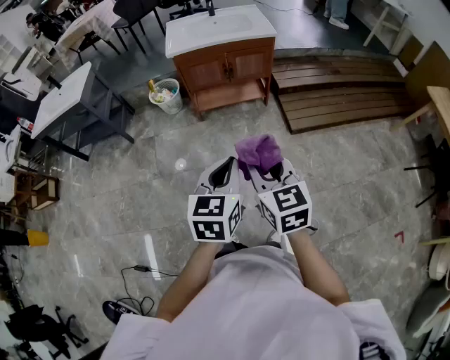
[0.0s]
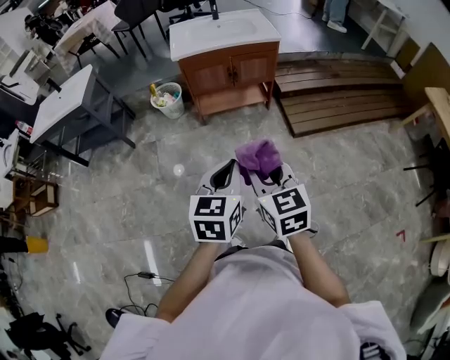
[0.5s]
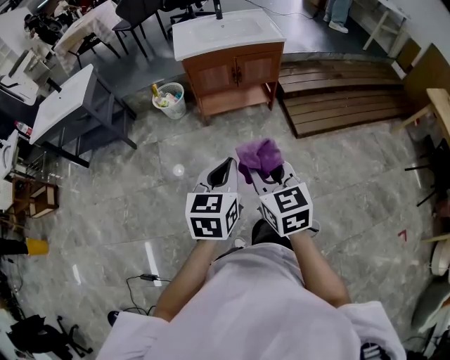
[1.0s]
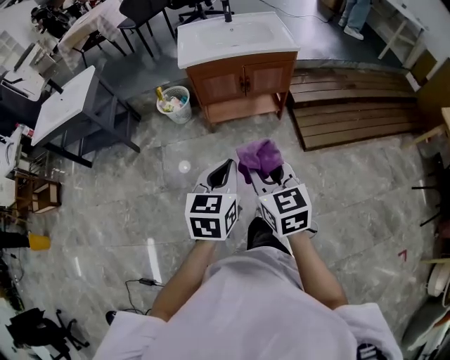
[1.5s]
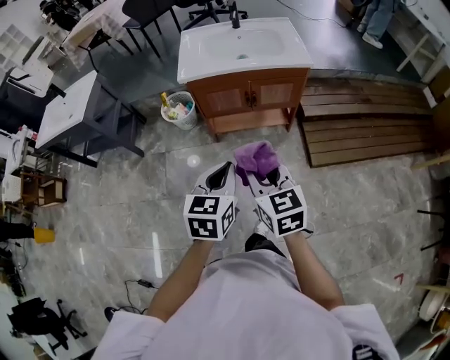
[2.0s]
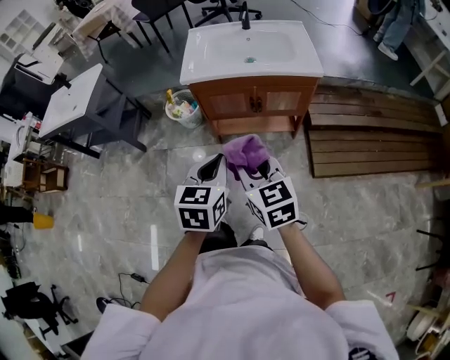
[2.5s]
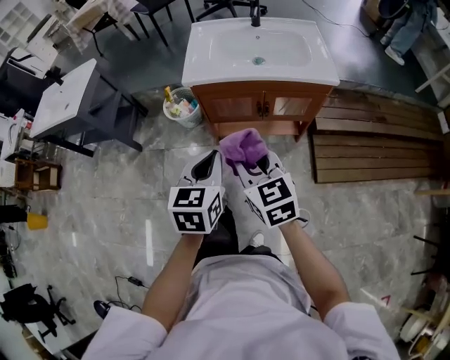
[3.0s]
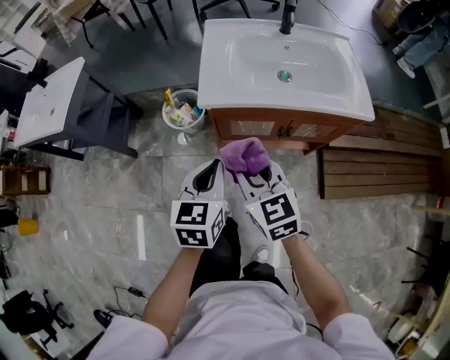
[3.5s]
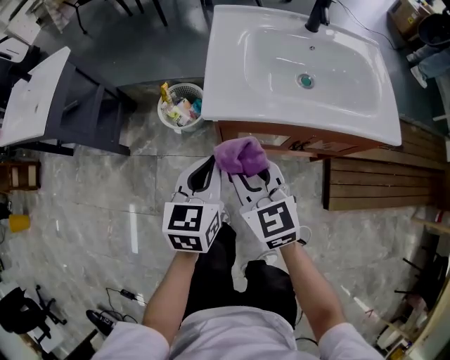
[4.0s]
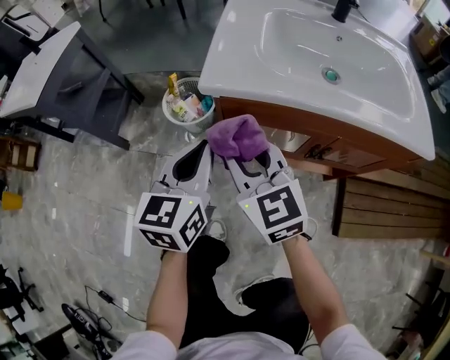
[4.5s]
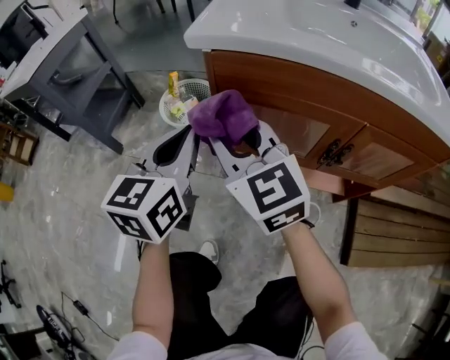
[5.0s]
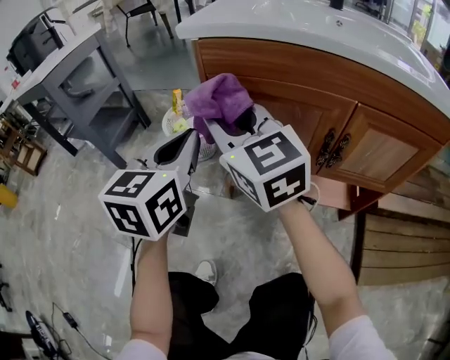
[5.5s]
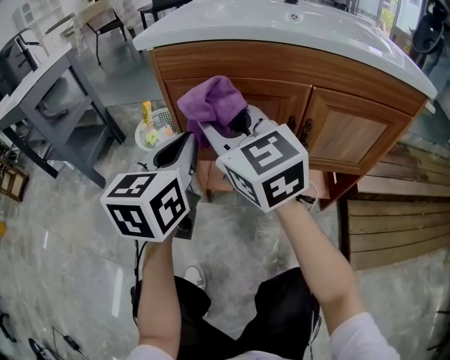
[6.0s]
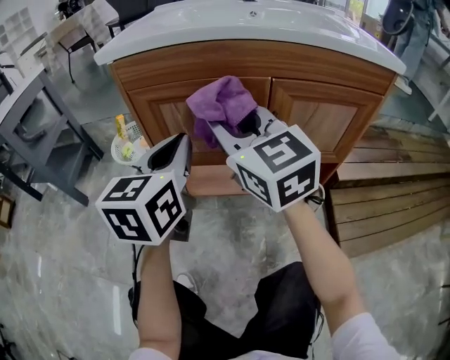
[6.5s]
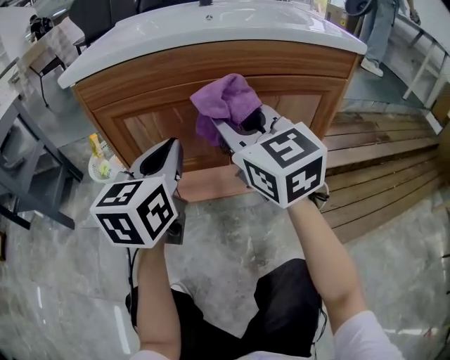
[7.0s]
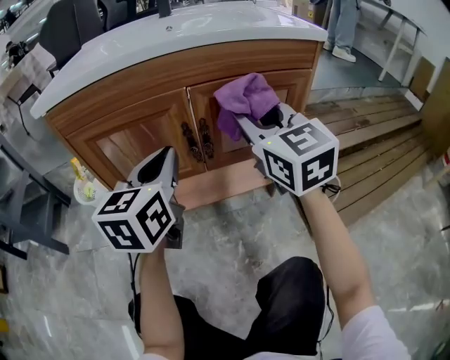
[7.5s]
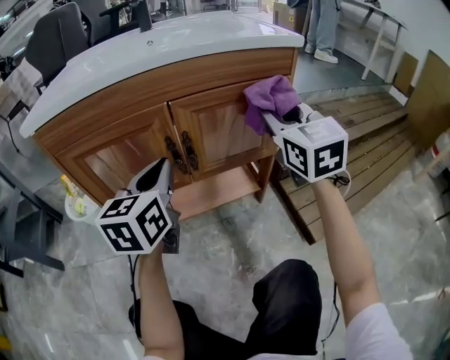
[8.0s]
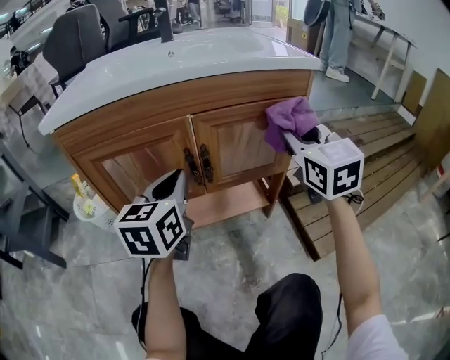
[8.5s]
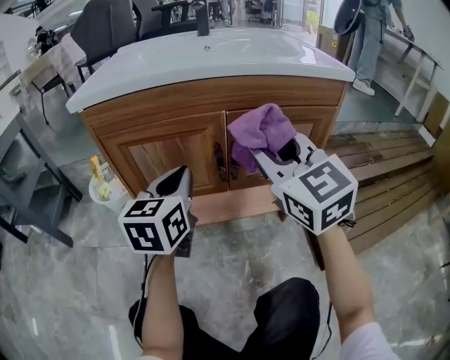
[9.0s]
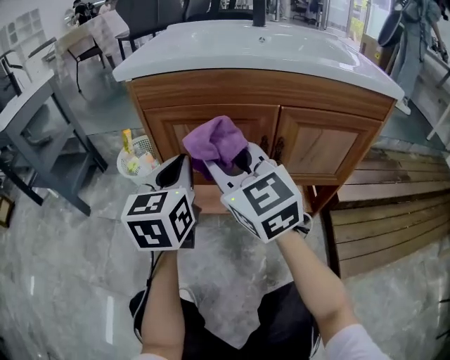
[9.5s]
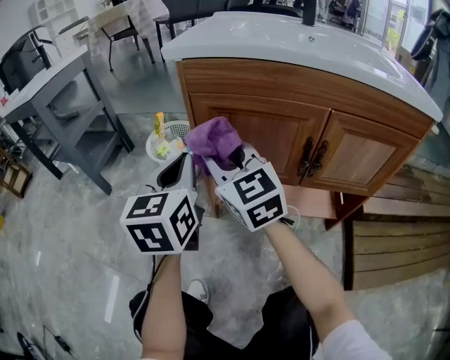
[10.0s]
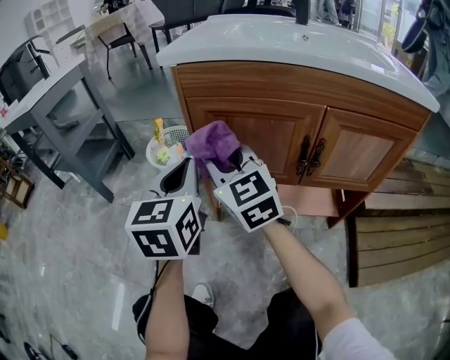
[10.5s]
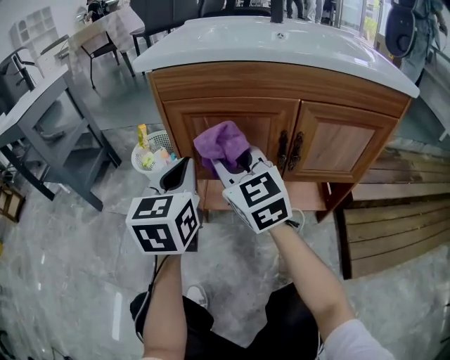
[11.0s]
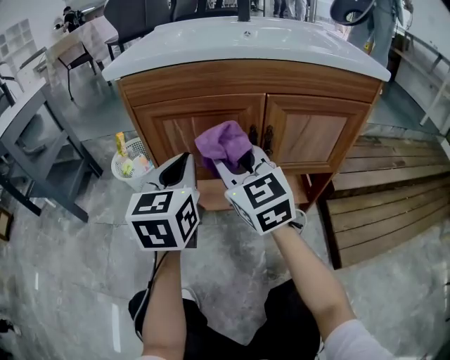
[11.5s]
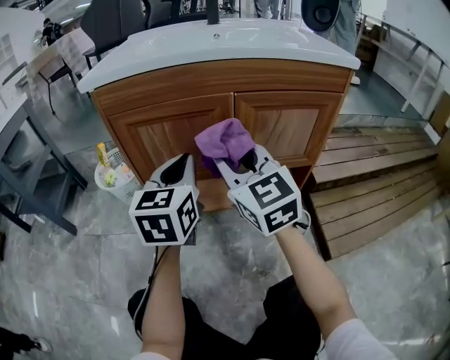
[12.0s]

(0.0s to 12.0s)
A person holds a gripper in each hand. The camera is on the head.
0.0s - 2.0s: Both grippers travel together forward, approximately 25 cm.
2.0s - 4.0s: Both grippers are carried forward, about 40 cm.
4.0s - 6.0s: Both grippers move downward, approximately 15 cm. The right gripper turns by some 20 degrees.
6.0s - 8.0s: The left gripper moves about 20 cm, and turns by approximately 20 degrees. The right gripper ends up about 40 cm from where it was, and swivels approximately 40 degrees.
8.0s - 10.0s: The right gripper ends up roughly 40 cm from where it was, and changes its angle by roughly 40 degrees; the left gripper shifts by about 25 cm, and swivels roughly 30 degrees.
10.0s - 12.0s: Both grippers move to the right, some 15 cm.

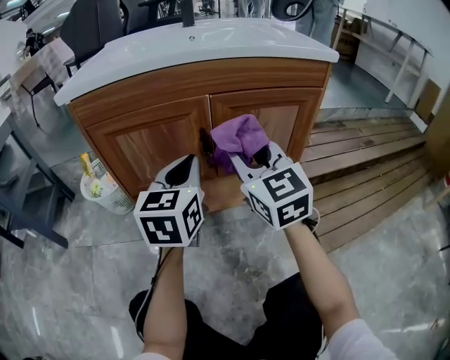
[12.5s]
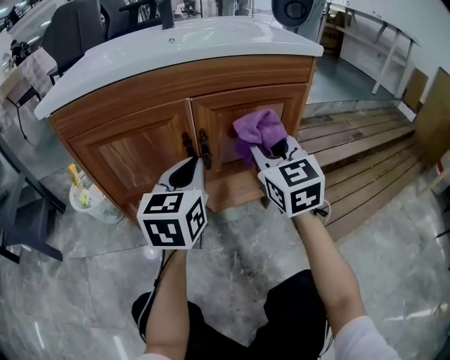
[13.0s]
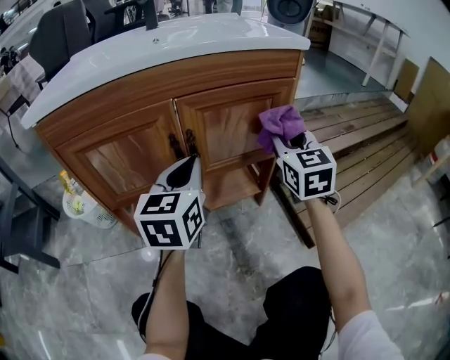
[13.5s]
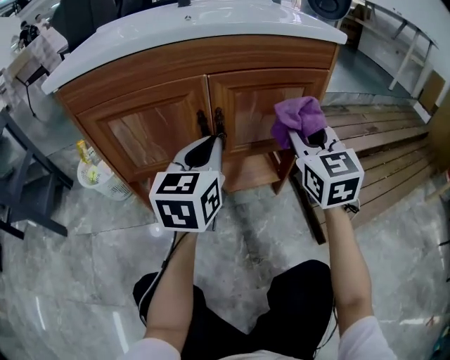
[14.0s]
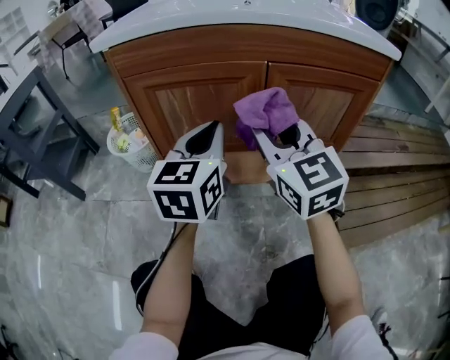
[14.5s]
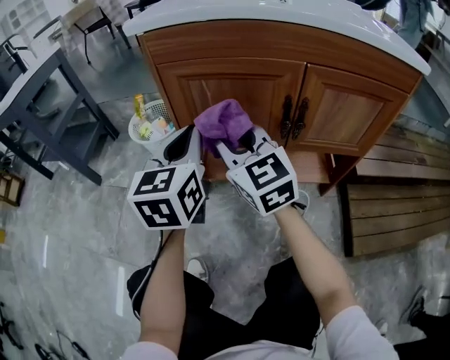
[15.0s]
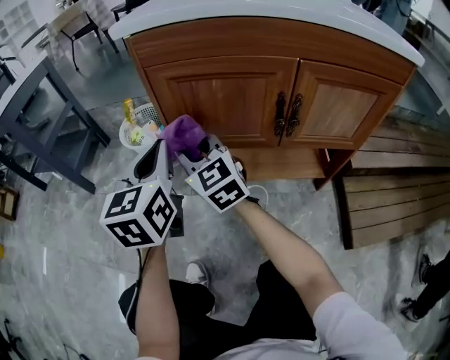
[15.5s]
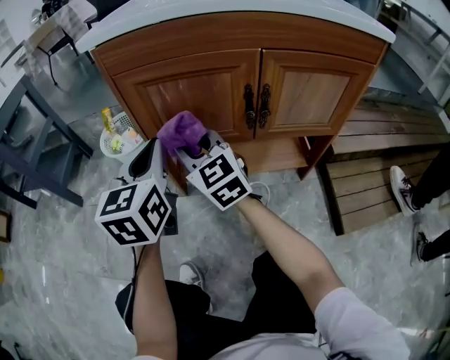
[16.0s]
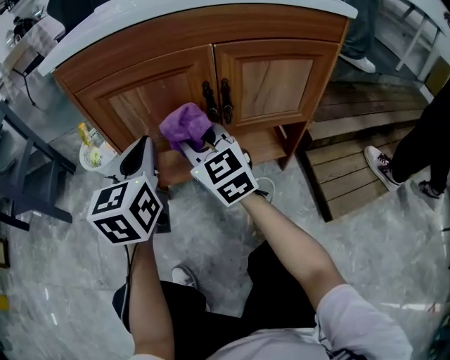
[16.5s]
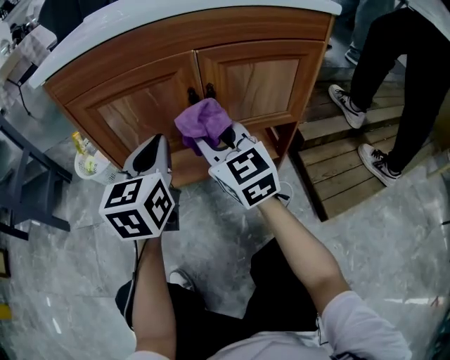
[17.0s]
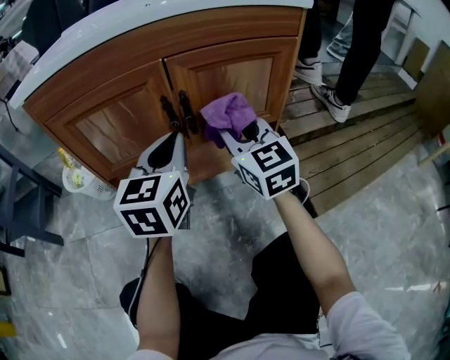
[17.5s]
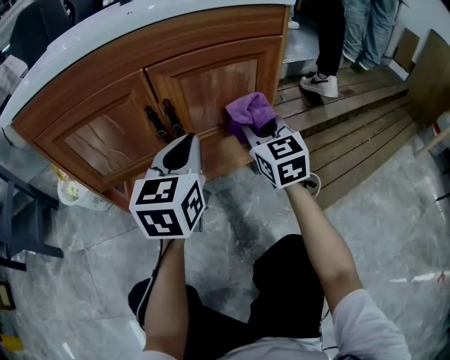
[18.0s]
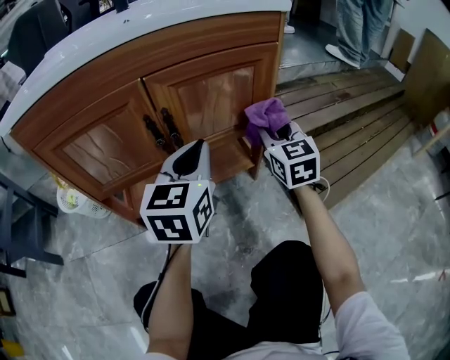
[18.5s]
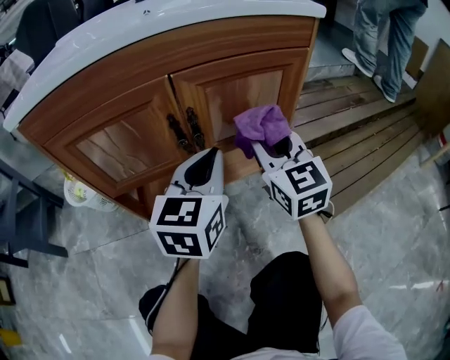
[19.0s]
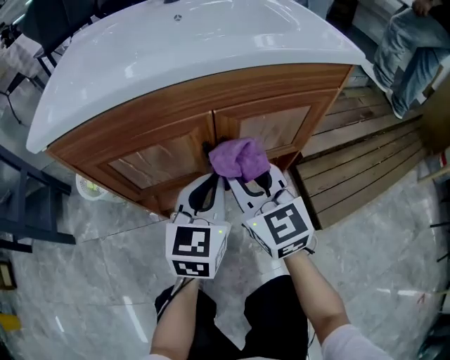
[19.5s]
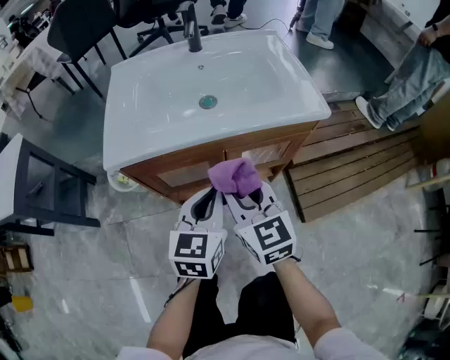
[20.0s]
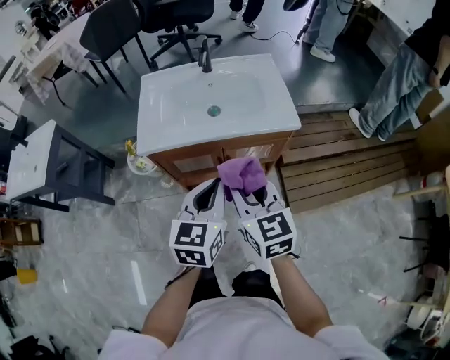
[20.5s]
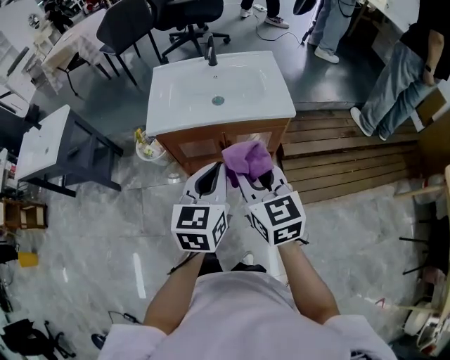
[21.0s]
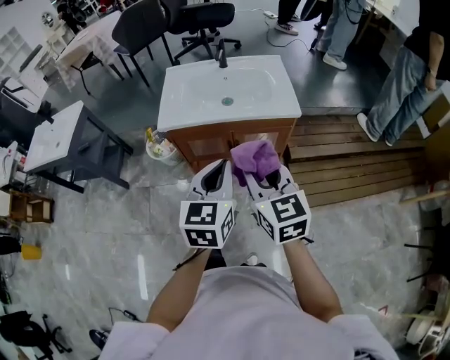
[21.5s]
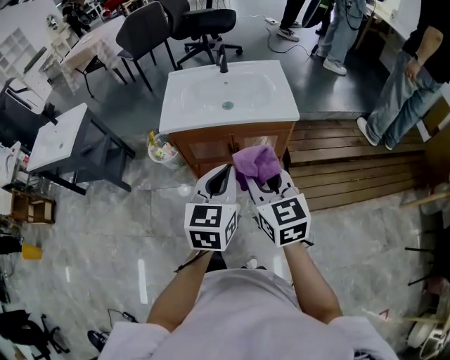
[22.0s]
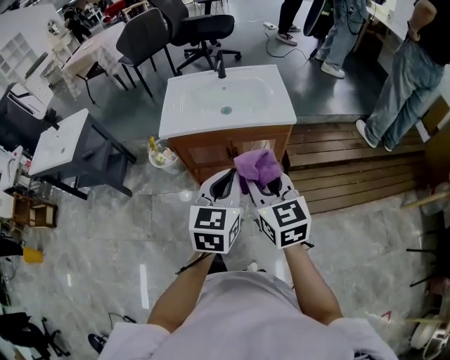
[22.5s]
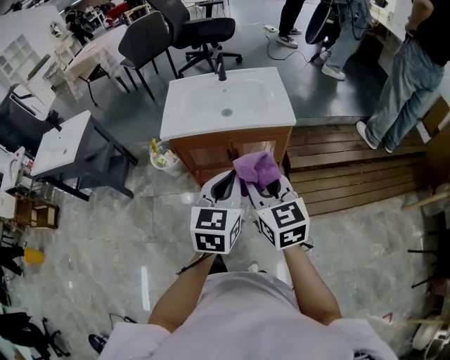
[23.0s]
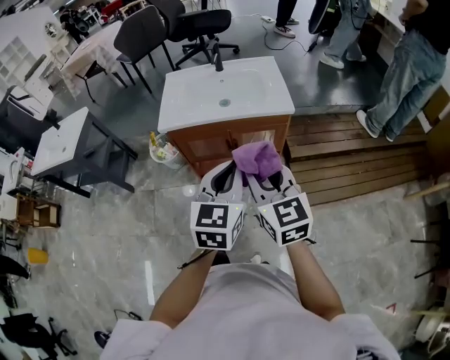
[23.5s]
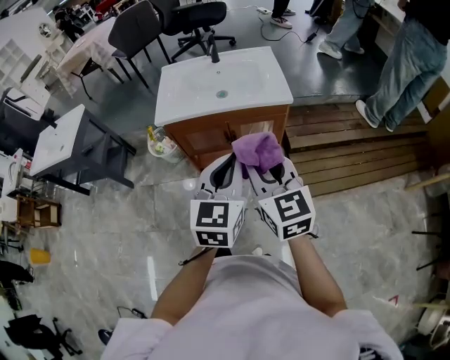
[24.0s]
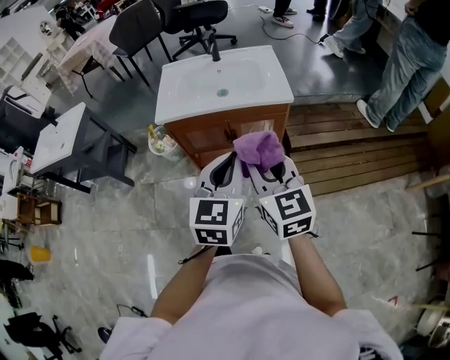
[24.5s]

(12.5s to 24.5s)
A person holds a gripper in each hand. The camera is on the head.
12.5s - 14.5s: The right gripper travels to the right and back again, roughly 20 cm each way.
14.5s - 16.5s: The left gripper moves to the left, approximately 5 cm; the right gripper heads downward, covering approximately 10 cm, and goes to the left and returns, approximately 20 cm each way.
16.5s - 18.5s: The left gripper shifts by some 20 cm, and rotates roughly 20 degrees. The right gripper changes place by approximately 35 cm, and rotates about 30 degrees.
18.5s - 20.5s: The right gripper goes approximately 50 cm upward, backward and to the left, and changes its angle by about 30 degrees; the left gripper heads upward, covering about 40 cm.
20.5s - 22.5s: Both grippers travel together backward and upward, approximately 15 cm.
22.5s - 24.5s: The grippers stay close to where they were, moving slightly.

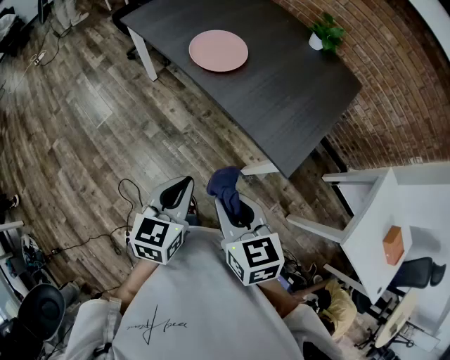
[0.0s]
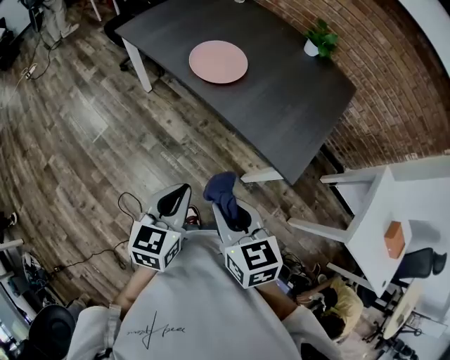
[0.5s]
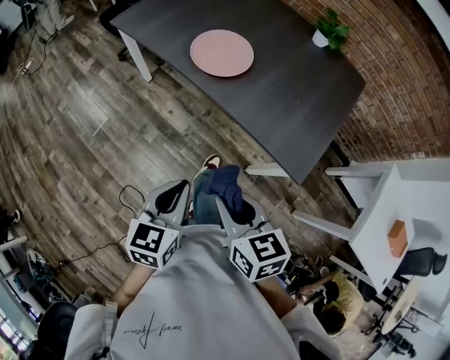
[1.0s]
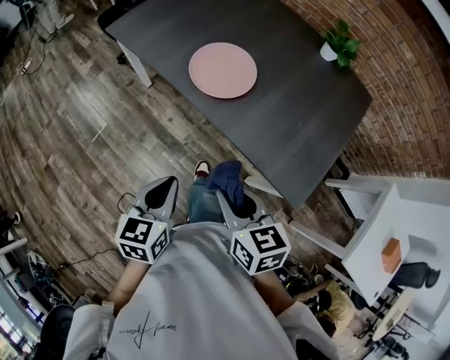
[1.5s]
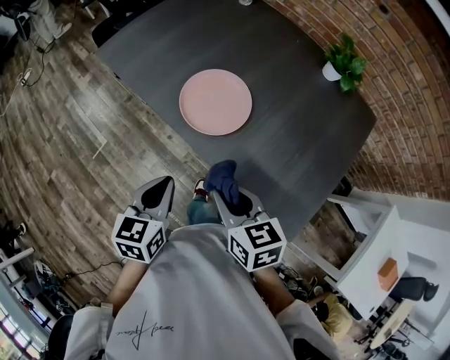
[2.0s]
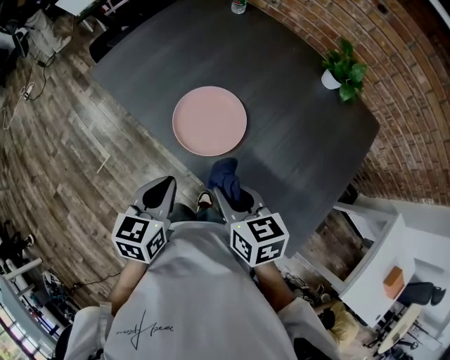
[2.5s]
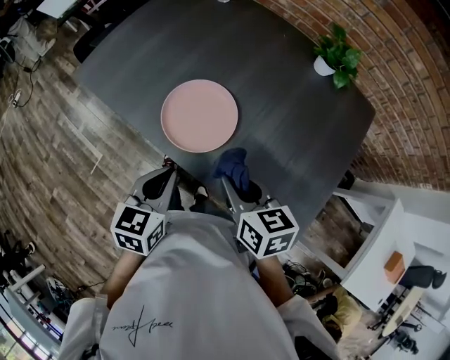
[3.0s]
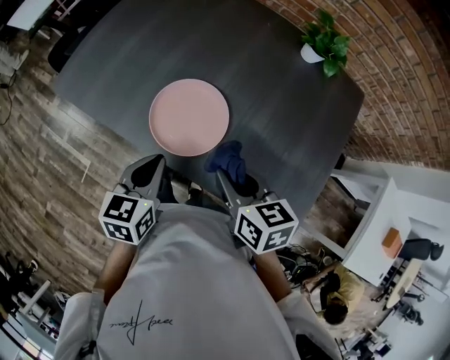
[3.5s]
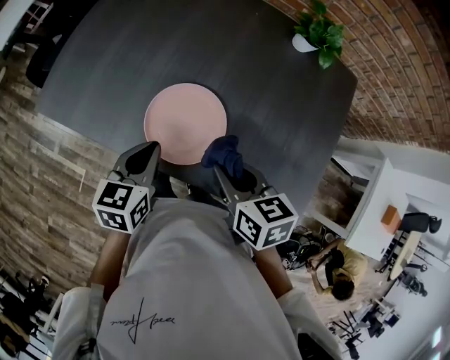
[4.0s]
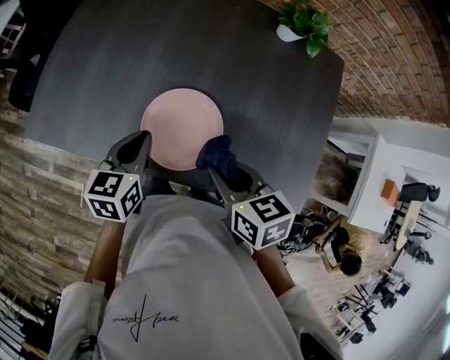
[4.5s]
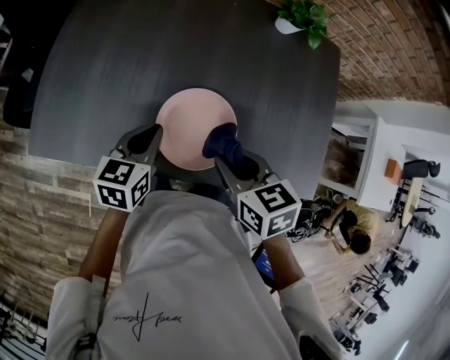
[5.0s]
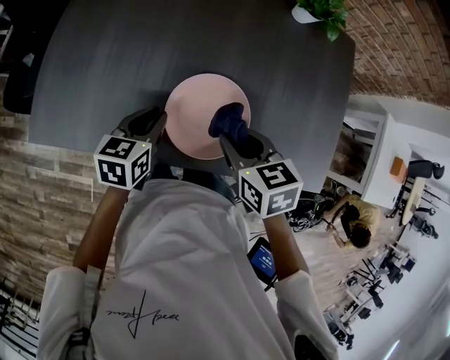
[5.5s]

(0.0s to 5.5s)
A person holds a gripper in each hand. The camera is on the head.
0.0s - 2.0s: Both grippers travel together forward, about 30 cm.
2.0s - 3.5s: The grippers both shift forward by about 15 cm.
3.5s - 5.5s: The left gripper moves forward, to the left and downward, approximately 20 cm, and changes its angle by about 20 degrees, while the right gripper heads to the left and forward, covering approximately 15 cm.
